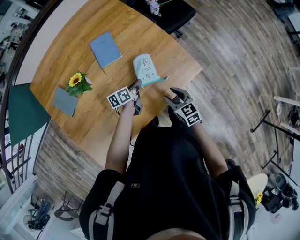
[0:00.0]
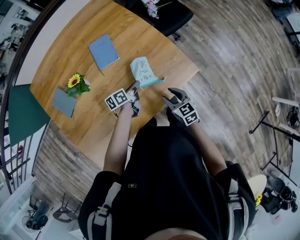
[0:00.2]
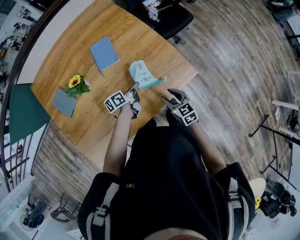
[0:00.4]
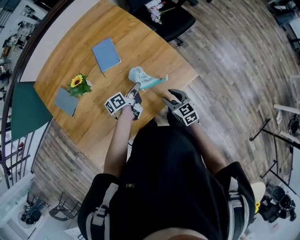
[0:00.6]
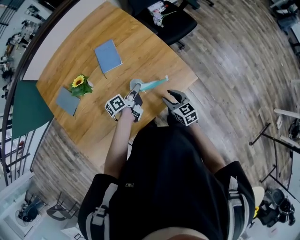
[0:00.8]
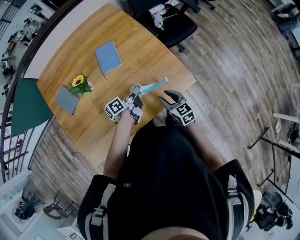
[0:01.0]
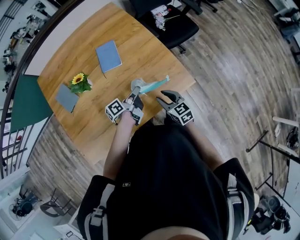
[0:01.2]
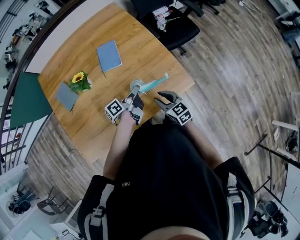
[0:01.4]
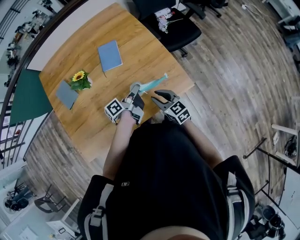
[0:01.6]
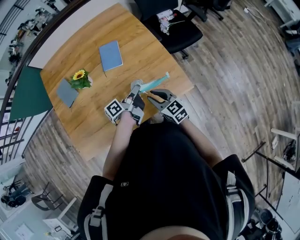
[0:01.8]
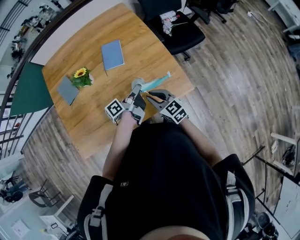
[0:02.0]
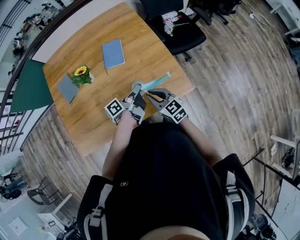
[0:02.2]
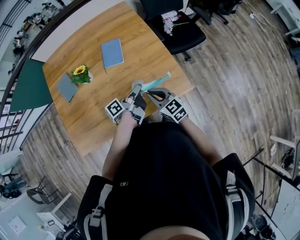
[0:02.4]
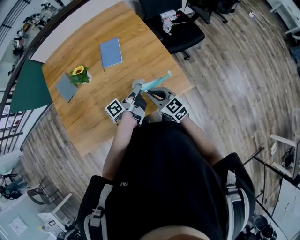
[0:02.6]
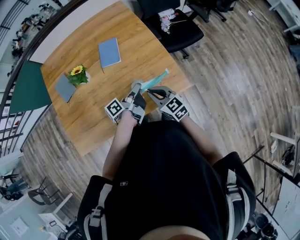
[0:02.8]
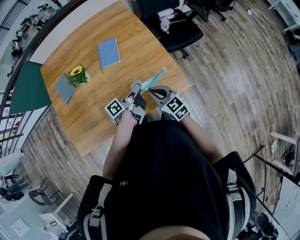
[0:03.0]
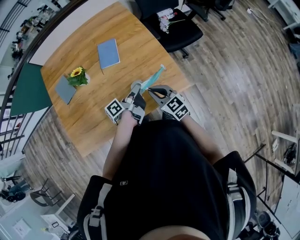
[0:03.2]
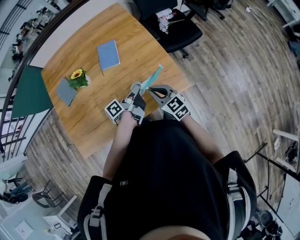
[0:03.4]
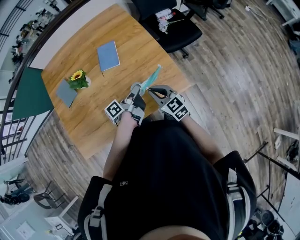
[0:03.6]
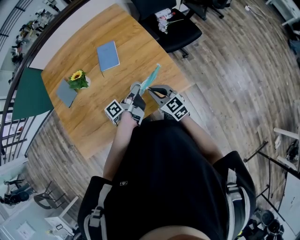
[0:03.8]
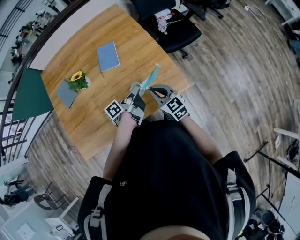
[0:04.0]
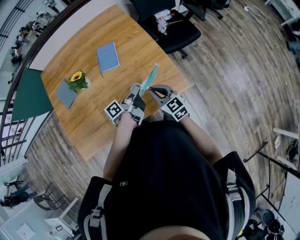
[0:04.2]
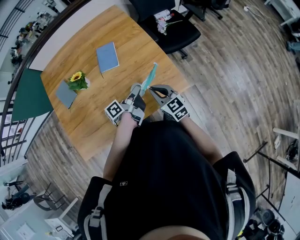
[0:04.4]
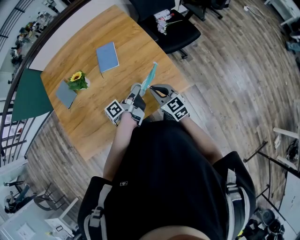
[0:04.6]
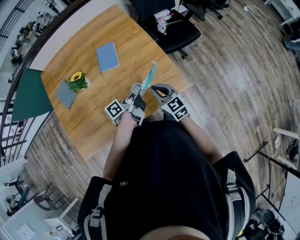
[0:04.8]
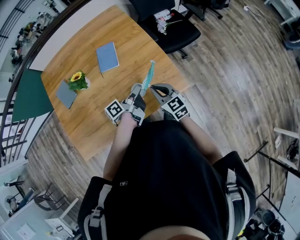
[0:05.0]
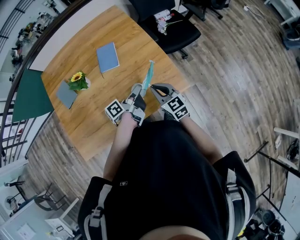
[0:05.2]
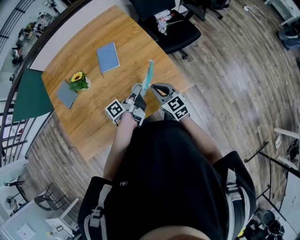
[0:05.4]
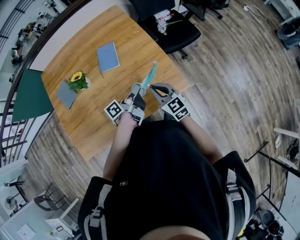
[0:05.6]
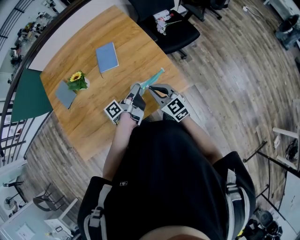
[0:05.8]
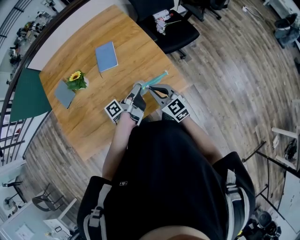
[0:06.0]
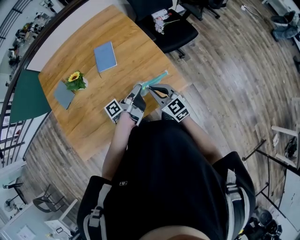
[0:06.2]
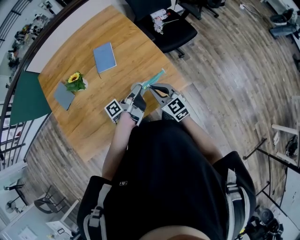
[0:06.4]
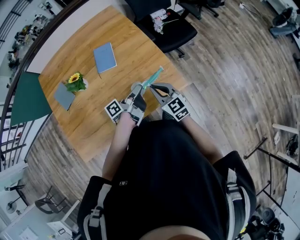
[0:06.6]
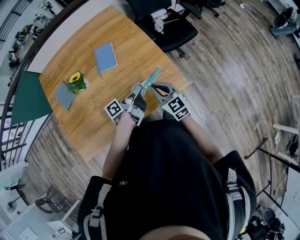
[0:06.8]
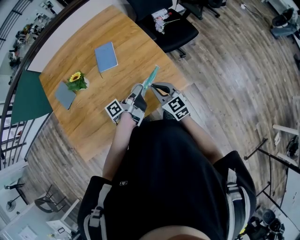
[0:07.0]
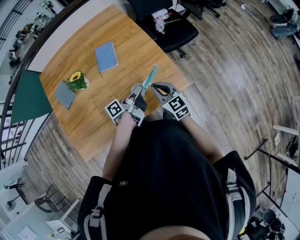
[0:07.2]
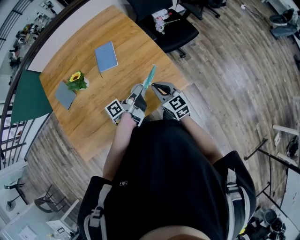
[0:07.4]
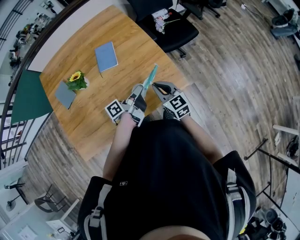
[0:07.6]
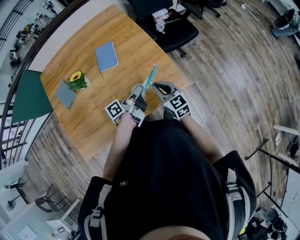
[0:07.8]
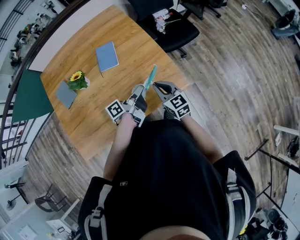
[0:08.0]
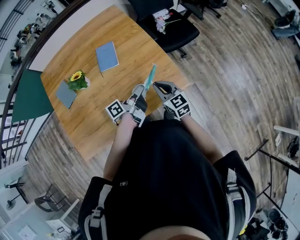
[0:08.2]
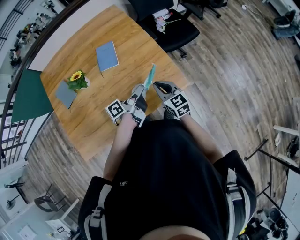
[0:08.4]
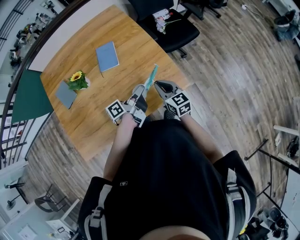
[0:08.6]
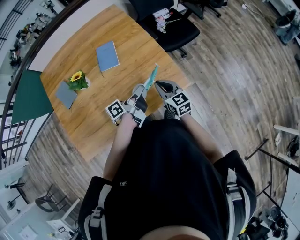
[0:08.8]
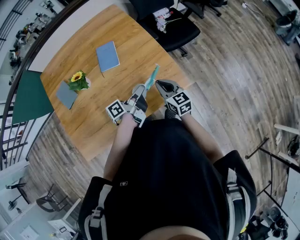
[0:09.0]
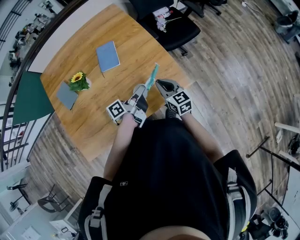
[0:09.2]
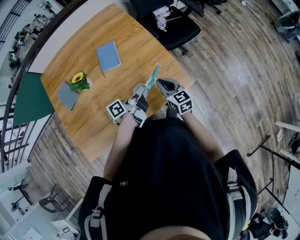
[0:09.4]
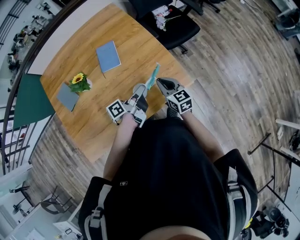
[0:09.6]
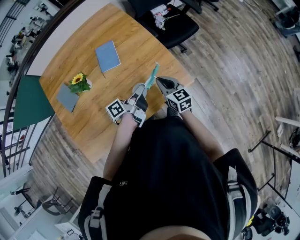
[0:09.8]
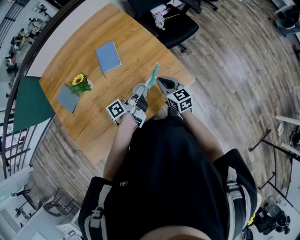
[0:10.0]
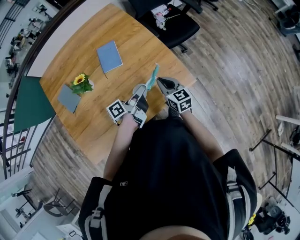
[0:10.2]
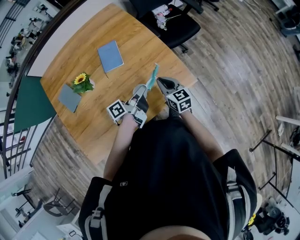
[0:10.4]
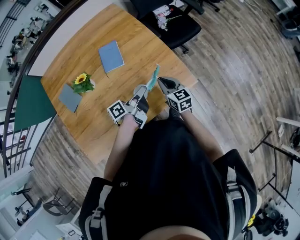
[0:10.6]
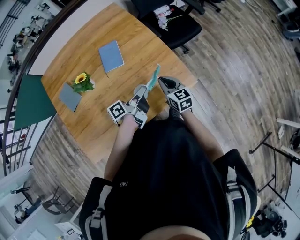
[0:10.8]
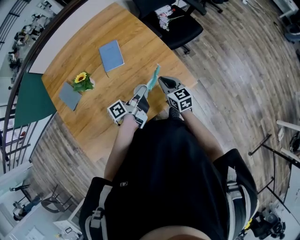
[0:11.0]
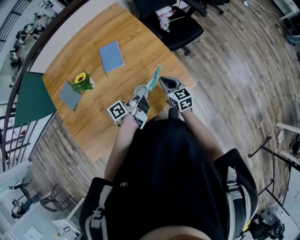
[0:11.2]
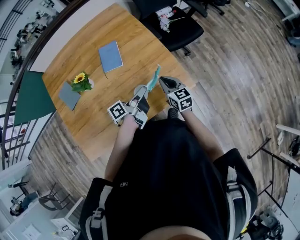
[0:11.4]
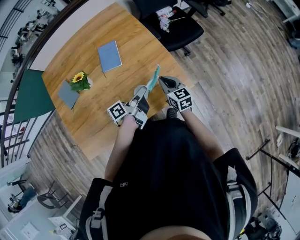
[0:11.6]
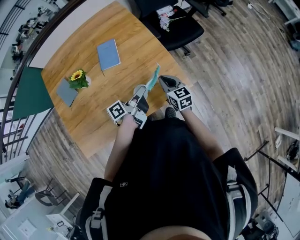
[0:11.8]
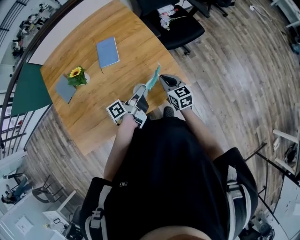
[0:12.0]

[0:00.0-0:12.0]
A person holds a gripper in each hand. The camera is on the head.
0:00.0 to 0:01.6: The right gripper heads upward, covering some 5 cm, and turns by about 20 degrees; the left gripper moves upward, some 15 cm, and turns by roughly 40 degrees.
0:01.6 to 0:03.0: The right gripper closes up.
0:03.0 to 0:07.6: There are only small adjustments of the grippers.
0:07.6 to 0:10.4: The grippers move only a little.
0:10.4 to 0:12.0: Both grippers move to the right, about 5 cm.

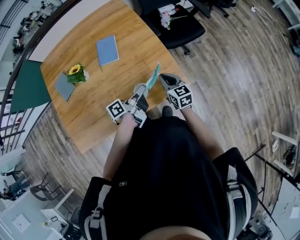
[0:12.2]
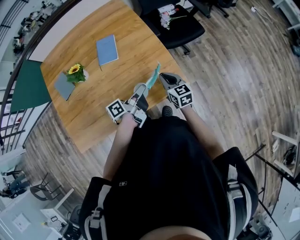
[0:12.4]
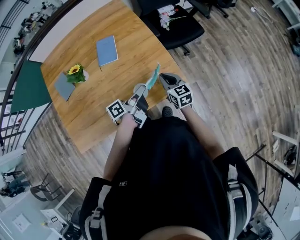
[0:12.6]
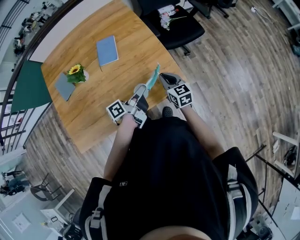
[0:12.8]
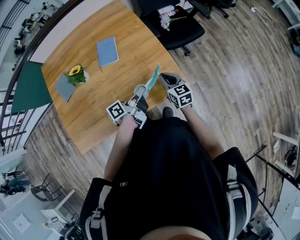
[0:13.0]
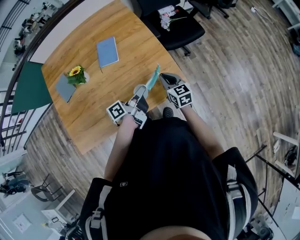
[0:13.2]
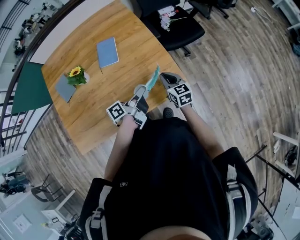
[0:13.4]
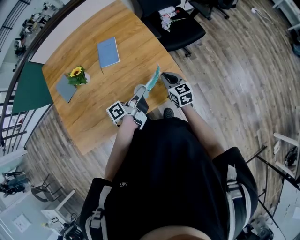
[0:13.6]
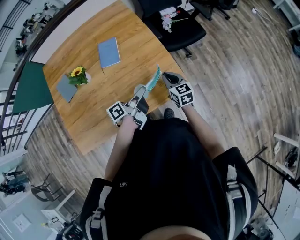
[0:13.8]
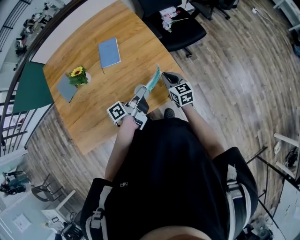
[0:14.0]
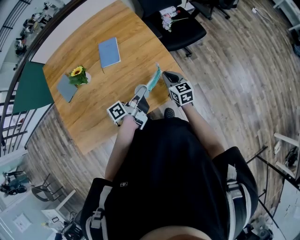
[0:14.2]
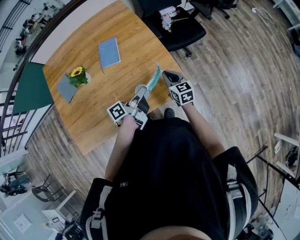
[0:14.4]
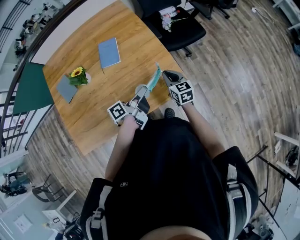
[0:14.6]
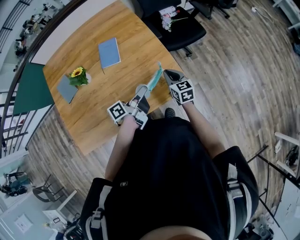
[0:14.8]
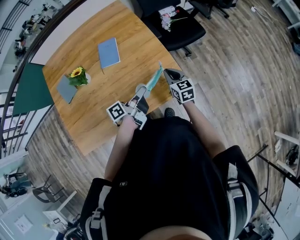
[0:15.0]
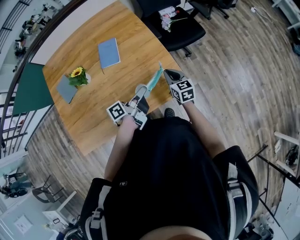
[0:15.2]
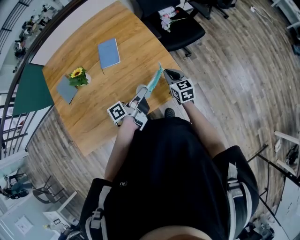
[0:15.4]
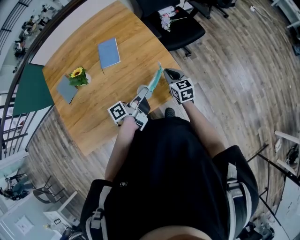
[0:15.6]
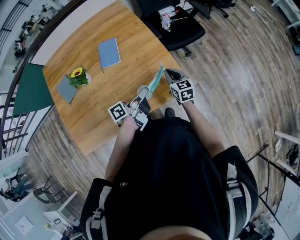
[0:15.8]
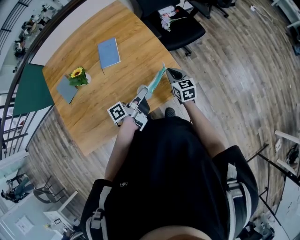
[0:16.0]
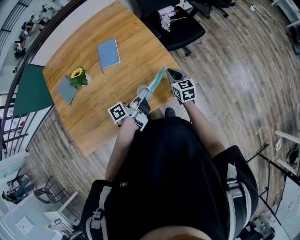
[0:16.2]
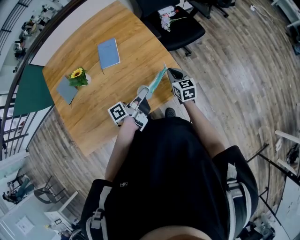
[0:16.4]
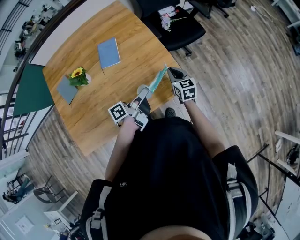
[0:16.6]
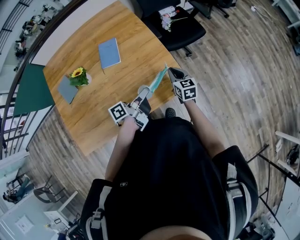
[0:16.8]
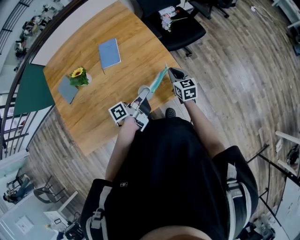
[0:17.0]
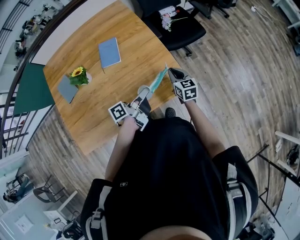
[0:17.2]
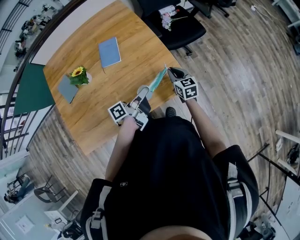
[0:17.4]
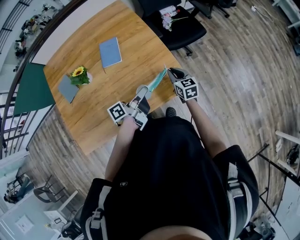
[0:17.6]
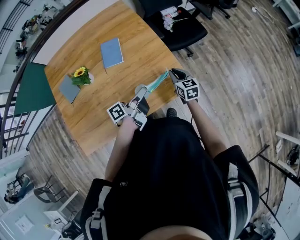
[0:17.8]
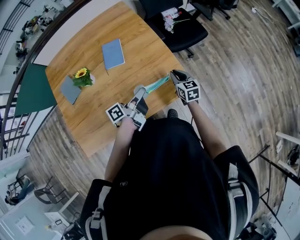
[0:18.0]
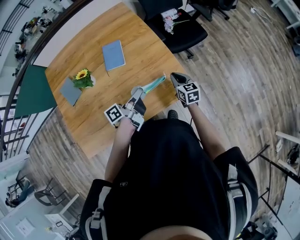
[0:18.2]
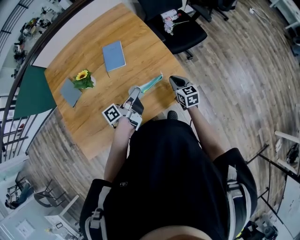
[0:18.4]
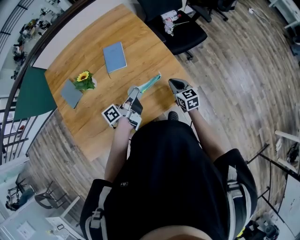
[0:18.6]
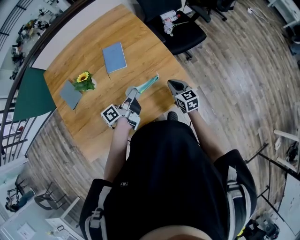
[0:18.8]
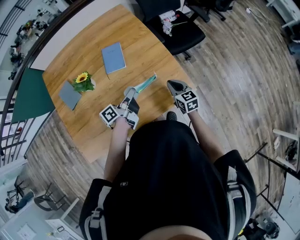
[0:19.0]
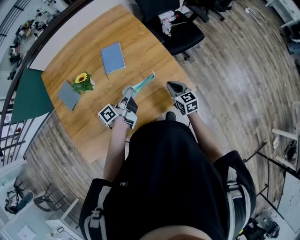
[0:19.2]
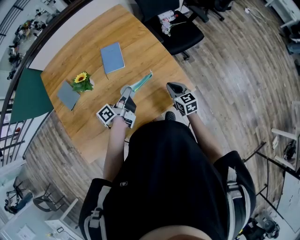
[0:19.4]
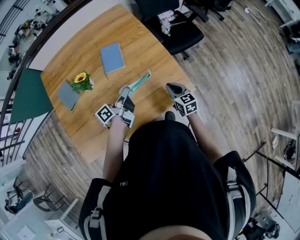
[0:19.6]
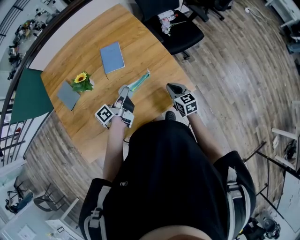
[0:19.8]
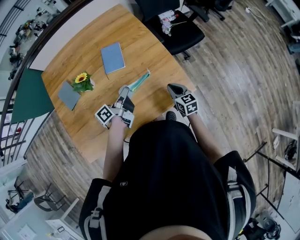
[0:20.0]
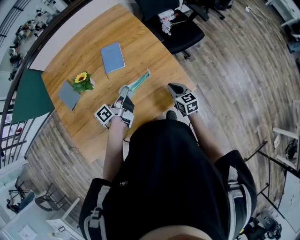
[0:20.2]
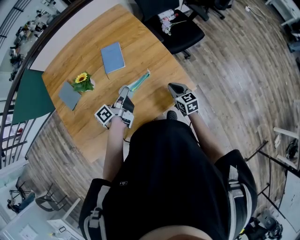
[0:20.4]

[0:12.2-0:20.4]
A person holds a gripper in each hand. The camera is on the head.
0:12.2 to 0:15.4: The grippers make only small movements.
0:15.4 to 0:17.2: The grippers move only a little.
0:17.2 to 0:18.8: The right gripper shifts some 5 cm to the left. Meanwhile the left gripper heads to the left, covering approximately 10 cm.
0:18.8 to 0:20.4: There are only small adjustments of the grippers.

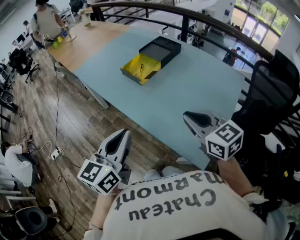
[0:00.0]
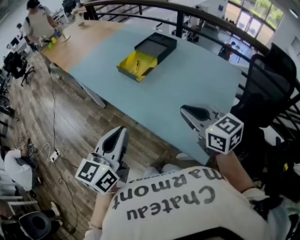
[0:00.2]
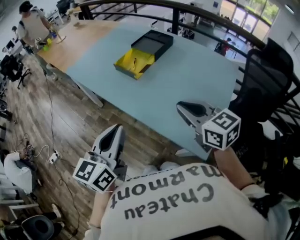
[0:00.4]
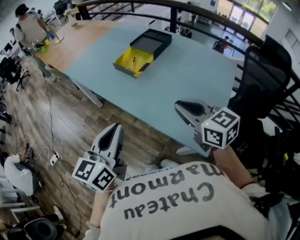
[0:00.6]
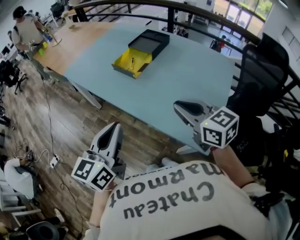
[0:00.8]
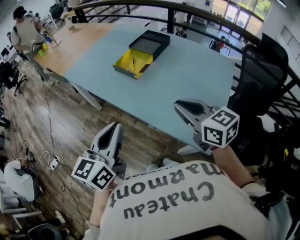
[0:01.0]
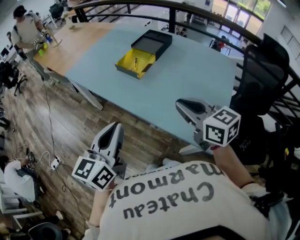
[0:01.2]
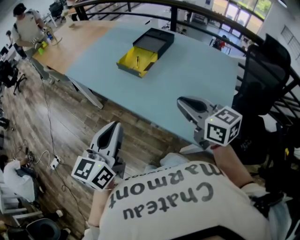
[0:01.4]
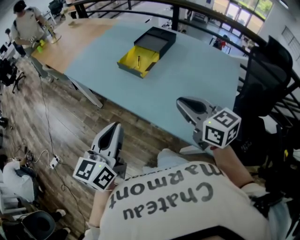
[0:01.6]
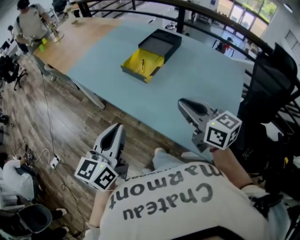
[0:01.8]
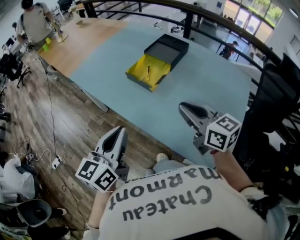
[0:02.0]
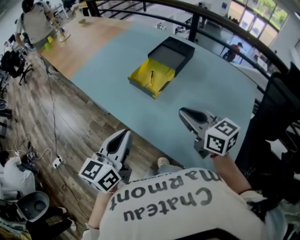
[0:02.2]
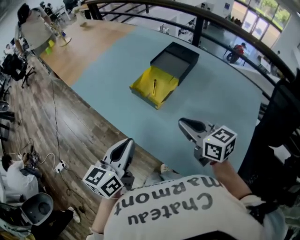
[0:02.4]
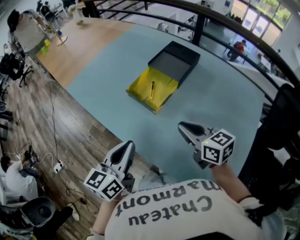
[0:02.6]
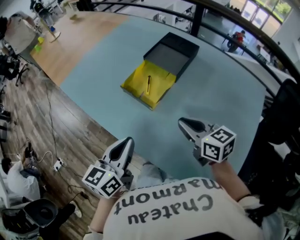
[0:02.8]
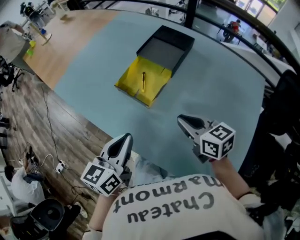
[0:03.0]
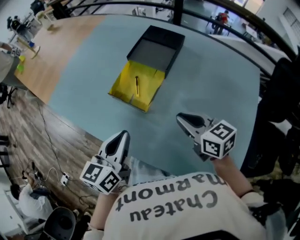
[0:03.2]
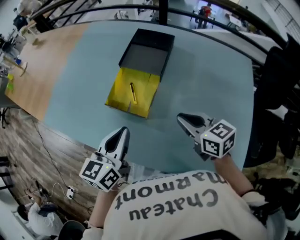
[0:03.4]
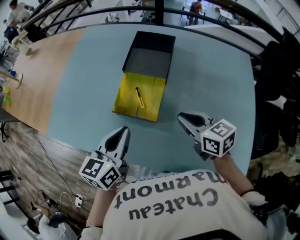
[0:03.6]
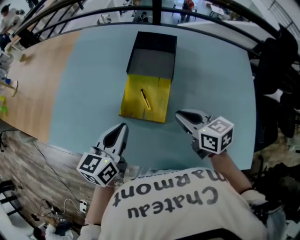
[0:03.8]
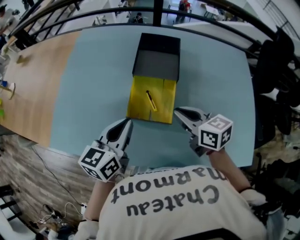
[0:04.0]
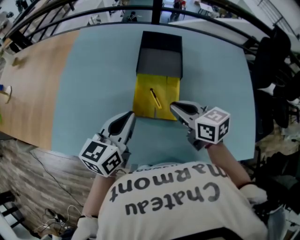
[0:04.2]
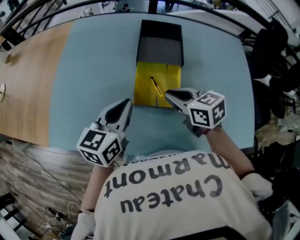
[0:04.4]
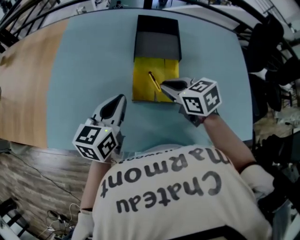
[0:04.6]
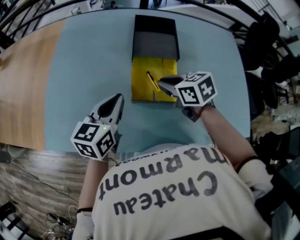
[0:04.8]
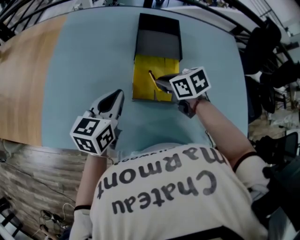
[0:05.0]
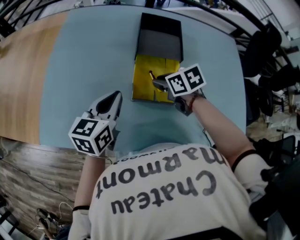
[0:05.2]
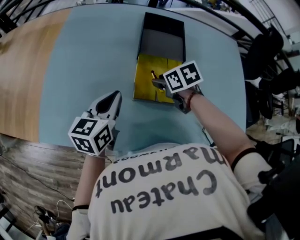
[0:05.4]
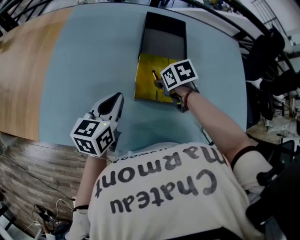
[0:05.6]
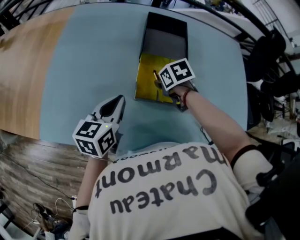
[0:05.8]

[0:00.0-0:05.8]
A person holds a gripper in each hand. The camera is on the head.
0:00.0 to 0:01.4: Both grippers travel together to the left, about 10 cm.
0:01.4 to 0:02.8: Both grippers travel together forward and downward, some 25 cm.
0:02.8 to 0:04.4: The left gripper ends up approximately 25 cm from where it was, and turns by approximately 40 degrees. Meanwhile the right gripper ends up some 20 cm from where it was, and rotates approximately 30 degrees.
0:04.4 to 0:05.8: The right gripper shifts about 15 cm downward and forward, tips its fingers downward by roughly 40 degrees, and opens its fingers. Meanwhile the left gripper moves downward, about 5 cm.
